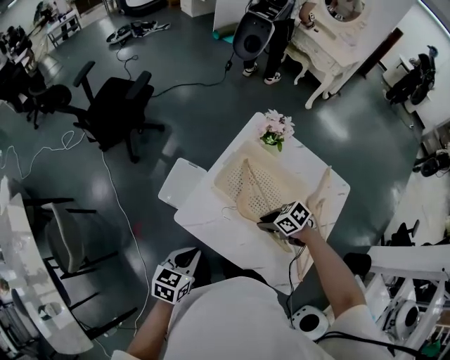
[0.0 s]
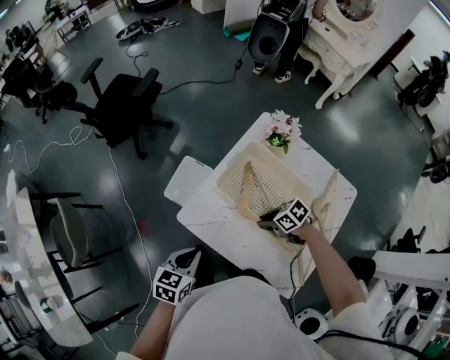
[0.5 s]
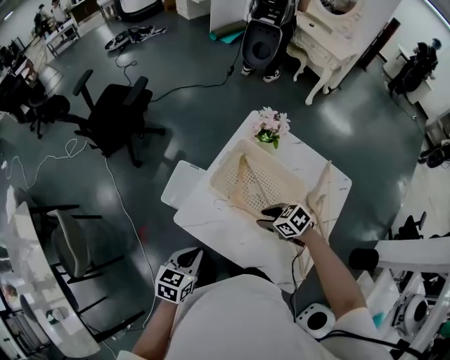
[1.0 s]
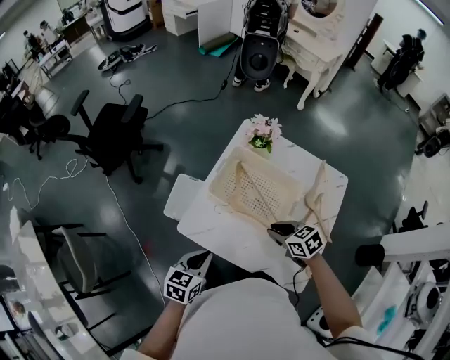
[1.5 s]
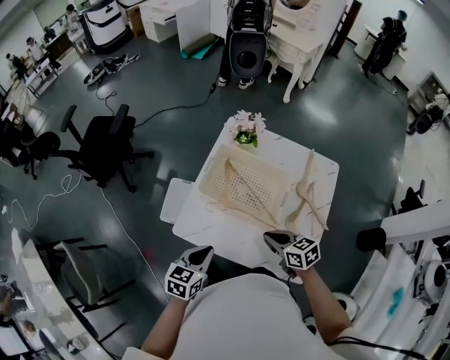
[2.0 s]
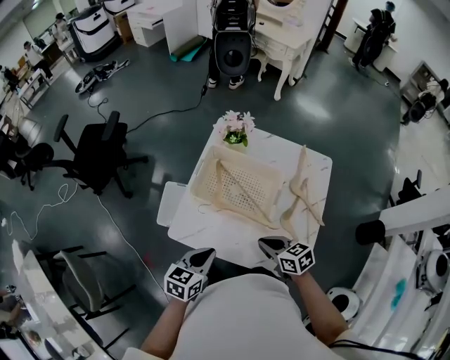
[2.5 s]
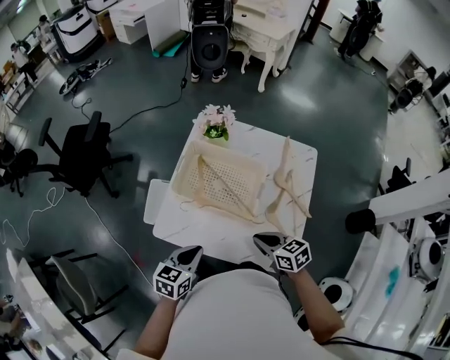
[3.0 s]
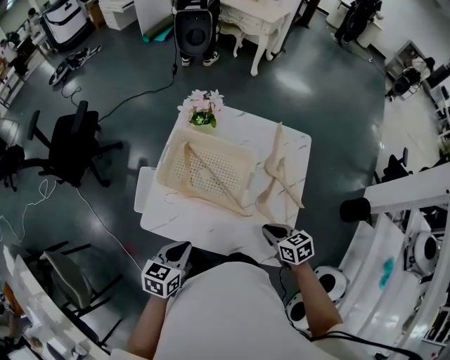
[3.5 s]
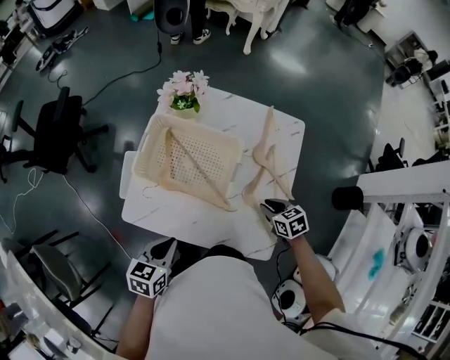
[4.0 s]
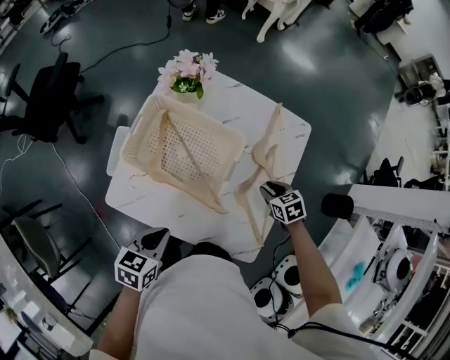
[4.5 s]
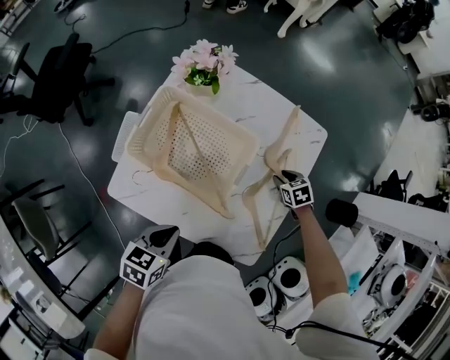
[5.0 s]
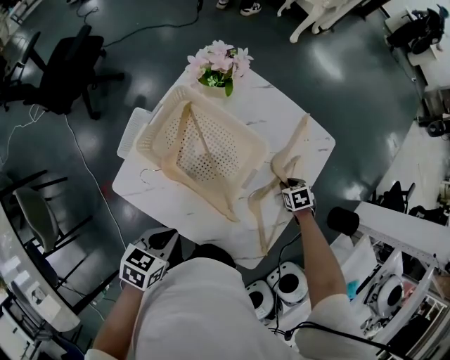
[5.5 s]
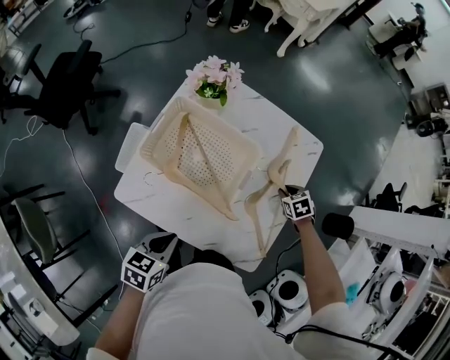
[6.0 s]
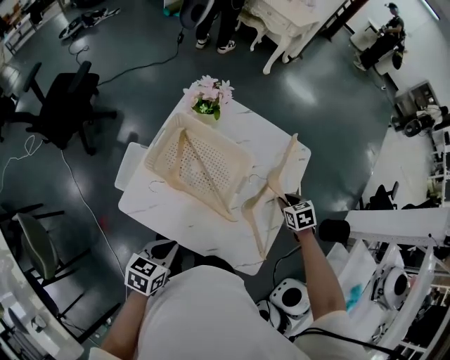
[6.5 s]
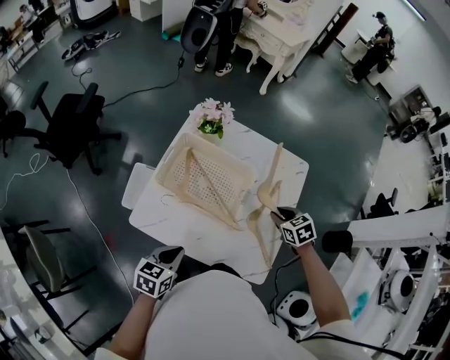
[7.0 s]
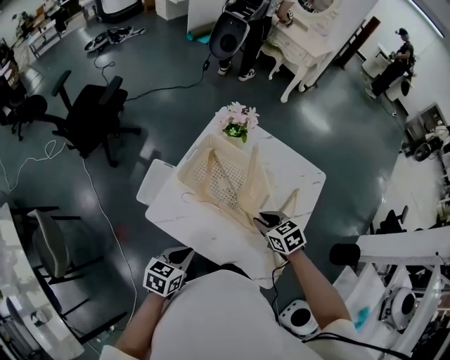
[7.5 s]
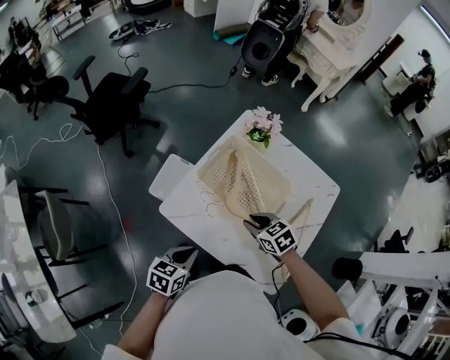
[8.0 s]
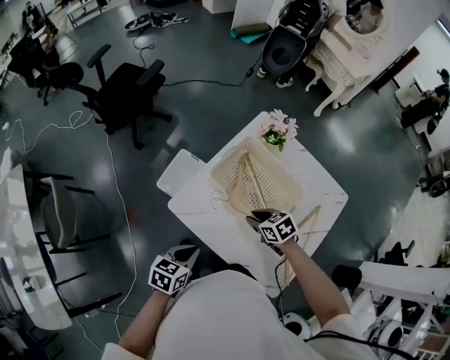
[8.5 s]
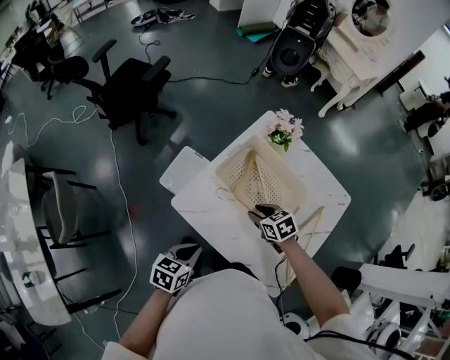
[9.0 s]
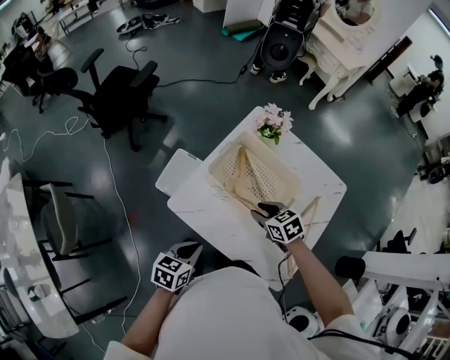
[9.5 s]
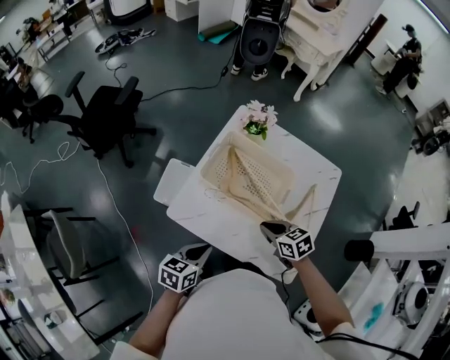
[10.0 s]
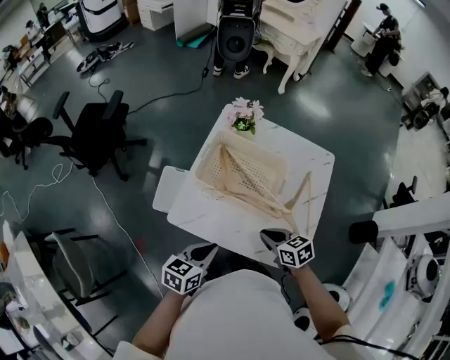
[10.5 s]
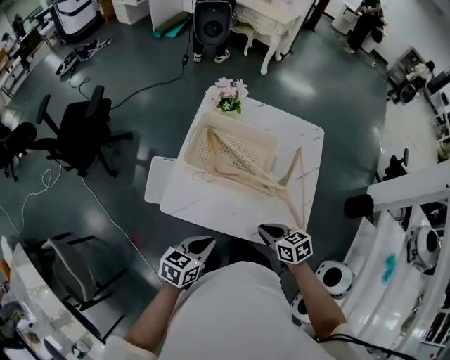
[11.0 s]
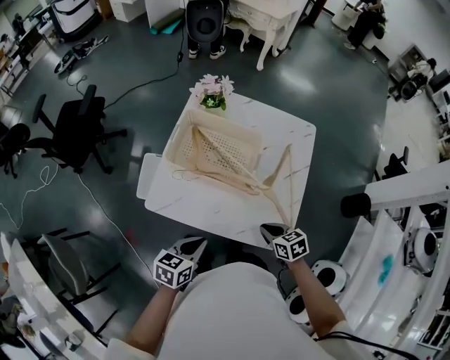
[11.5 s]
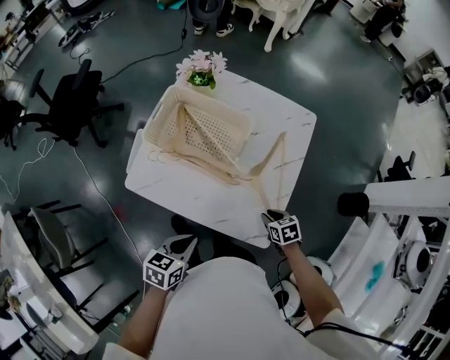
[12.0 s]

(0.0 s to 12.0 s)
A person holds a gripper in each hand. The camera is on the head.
0.0 s - 2.0 s: The right gripper changes place by roughly 10 cm, and swivels roughly 40 degrees; the left gripper moves some 5 cm.
2.0 s - 4.0 s: The right gripper moves to the right and downward, roughly 25 cm, and rotates some 20 degrees. The left gripper shifts about 5 cm to the right.
4.0 s - 6.0 s: The right gripper changes place by approximately 15 cm, and swivels about 20 degrees.
6.0 s - 8.0 s: The left gripper ends up approximately 10 cm from where it was. The right gripper ends up approximately 35 cm from where it was, and turns by roughly 30 degrees.
8.0 s - 10.0 s: The right gripper shifts about 5 cm backward.
10.0 s - 12.0 s: The left gripper heads to the right and backward, covering some 15 cm, while the right gripper heads to the right, downward and backward, covering approximately 30 cm, and rotates about 20 degrees.

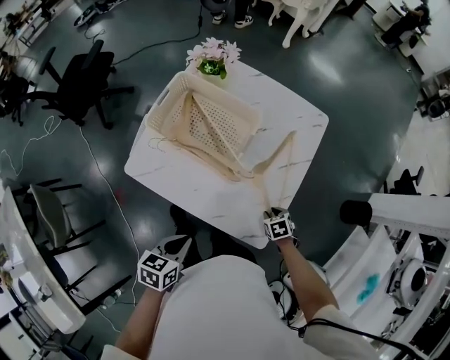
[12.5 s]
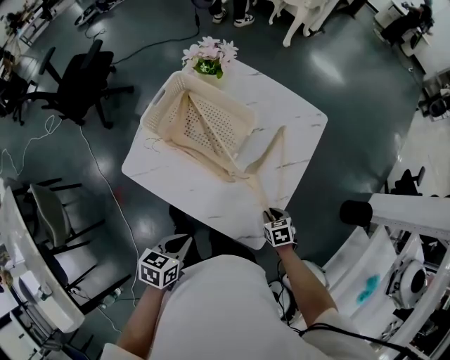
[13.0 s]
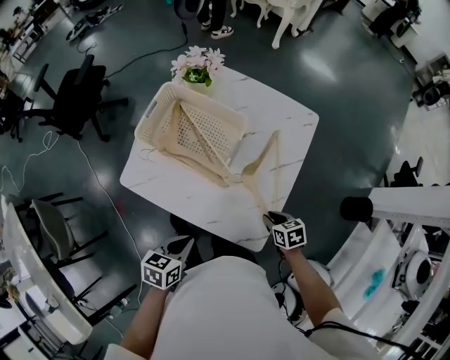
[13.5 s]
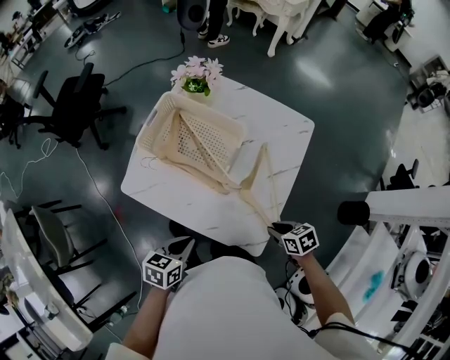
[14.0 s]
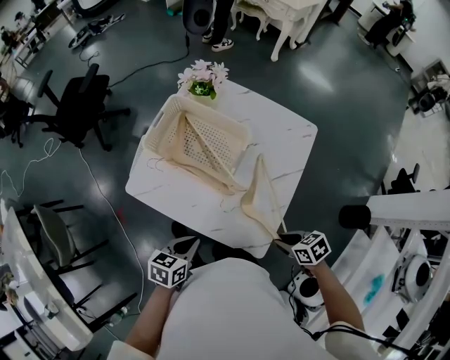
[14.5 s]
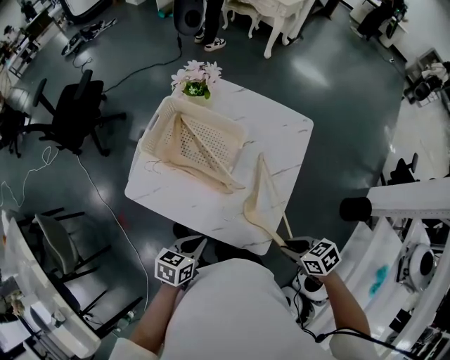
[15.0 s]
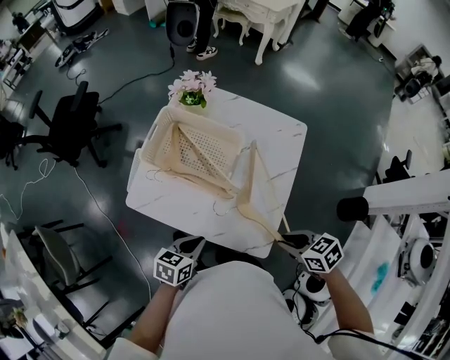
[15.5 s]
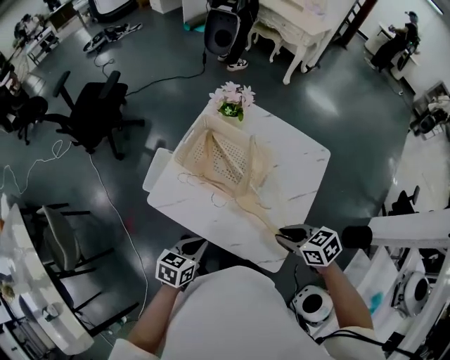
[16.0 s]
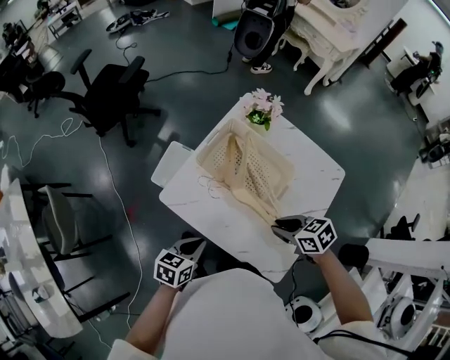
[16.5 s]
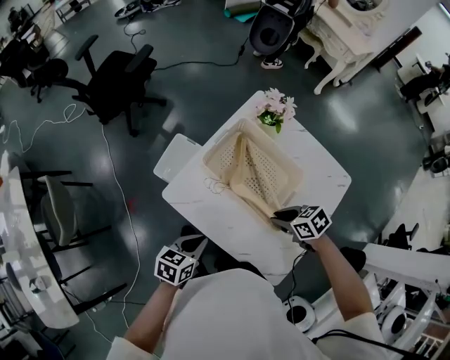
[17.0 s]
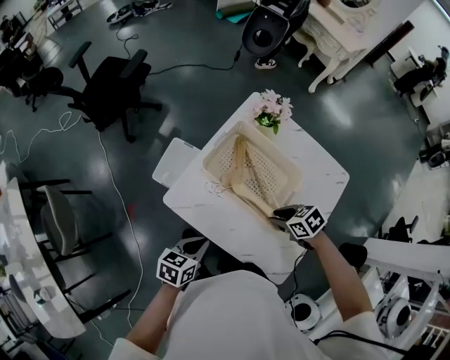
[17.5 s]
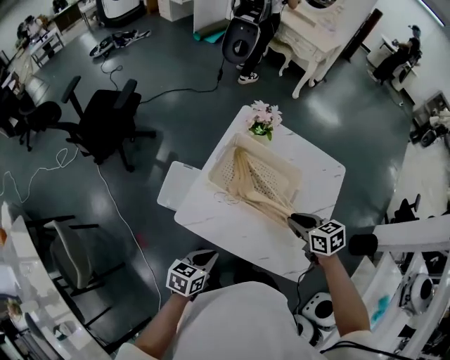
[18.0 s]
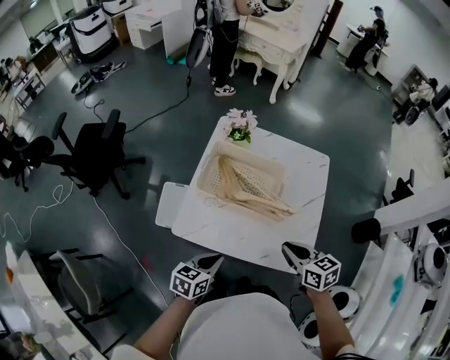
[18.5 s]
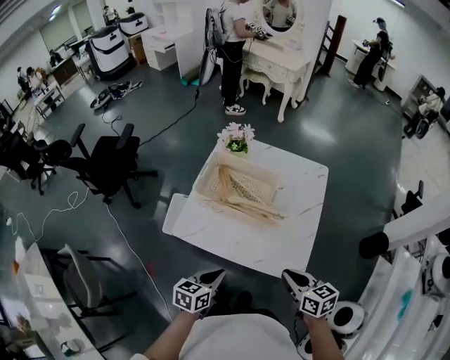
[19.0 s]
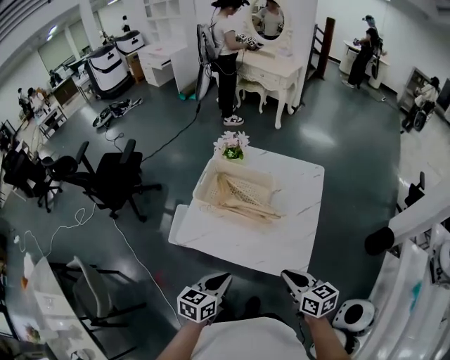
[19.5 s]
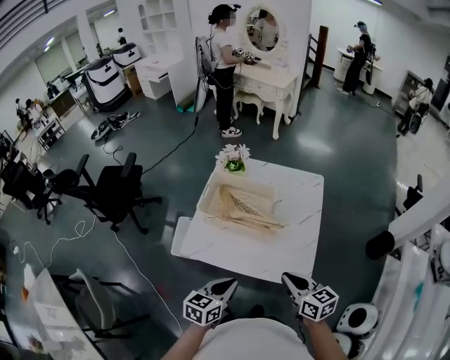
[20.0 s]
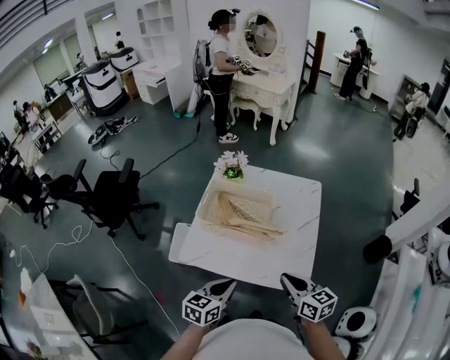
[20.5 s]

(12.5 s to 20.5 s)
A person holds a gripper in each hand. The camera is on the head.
12.5 s - 14.5 s: The right gripper shifts some 15 cm upward, and rotates some 30 degrees.
14.5 s - 16.5 s: The right gripper travels forward, to the left and upward by roughly 25 cm, while the left gripper shifts some 15 cm to the left and forward.
16.5 s - 18.5 s: The left gripper changes its angle by approximately 20 degrees, while the right gripper shifts by about 10 cm, and changes its angle by roughly 40 degrees.
18.5 s - 20.5 s: The left gripper goes about 15 cm upward, to the right and backward, while the right gripper is displaced backward and upward by roughly 10 cm.

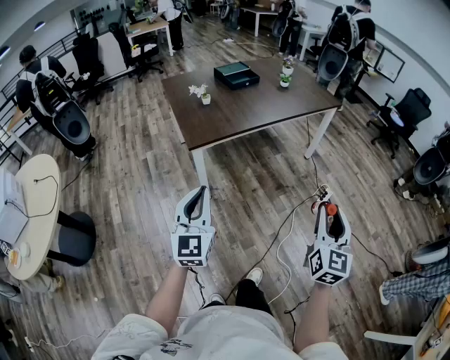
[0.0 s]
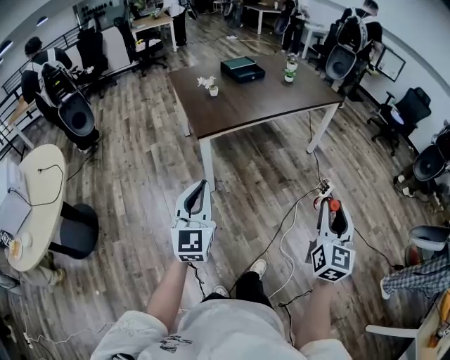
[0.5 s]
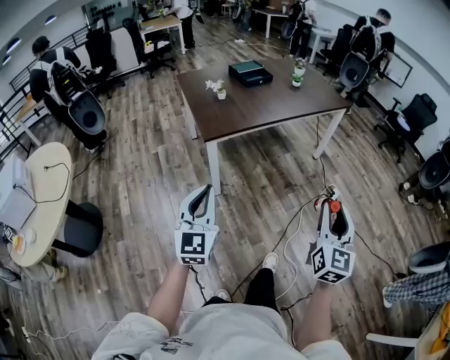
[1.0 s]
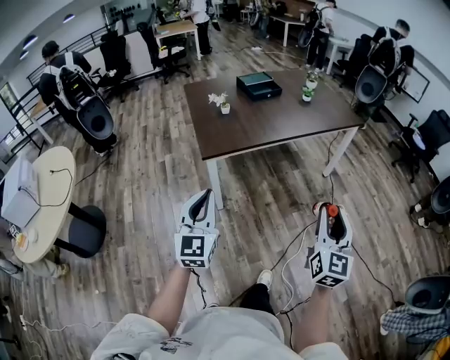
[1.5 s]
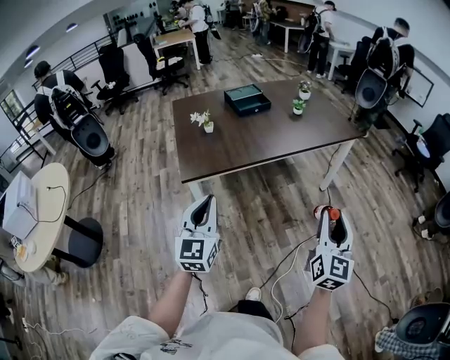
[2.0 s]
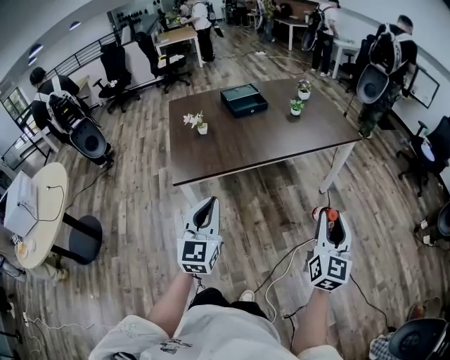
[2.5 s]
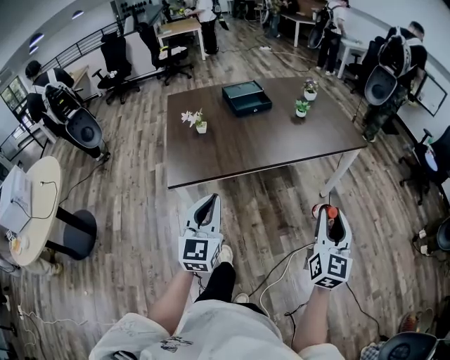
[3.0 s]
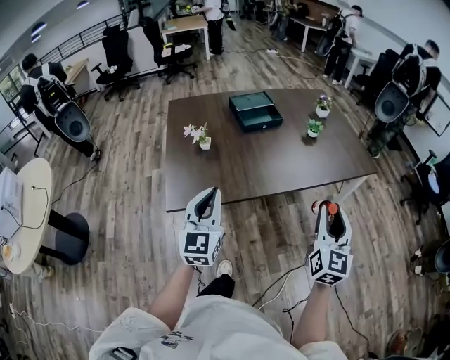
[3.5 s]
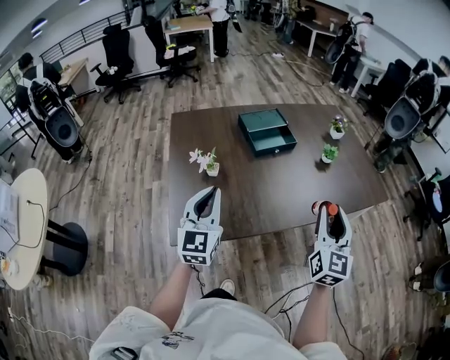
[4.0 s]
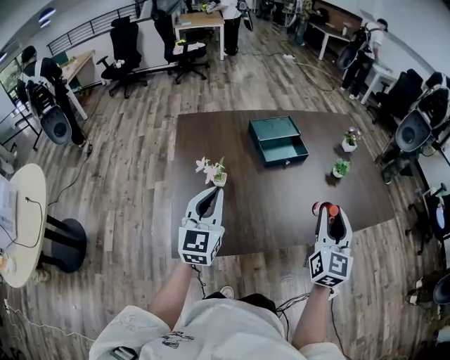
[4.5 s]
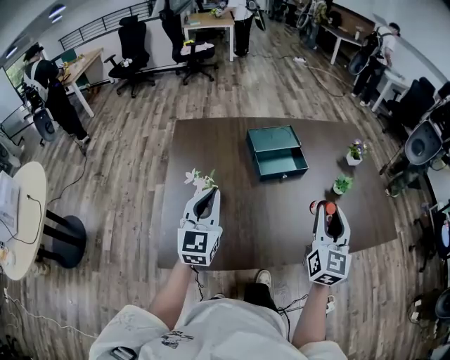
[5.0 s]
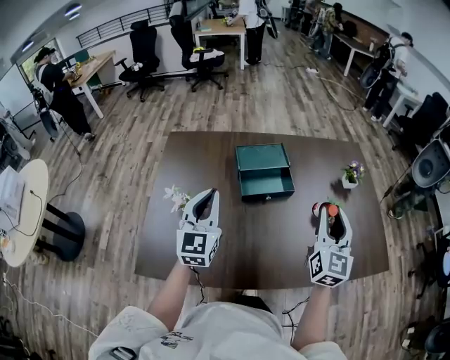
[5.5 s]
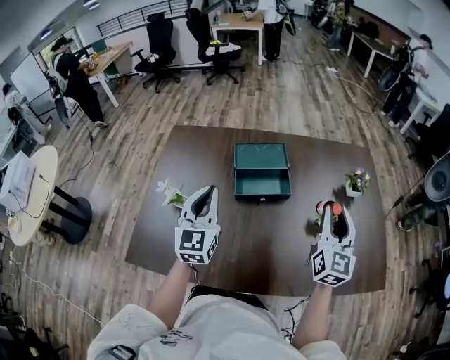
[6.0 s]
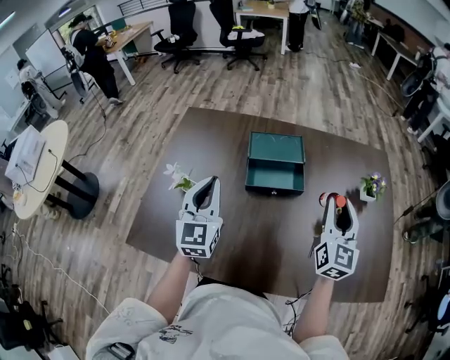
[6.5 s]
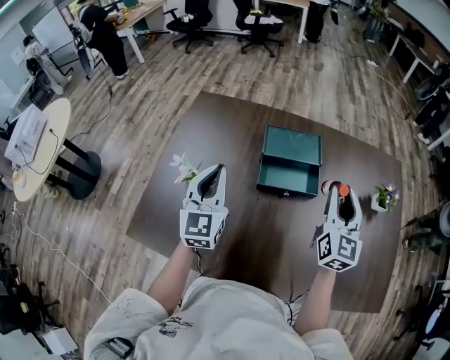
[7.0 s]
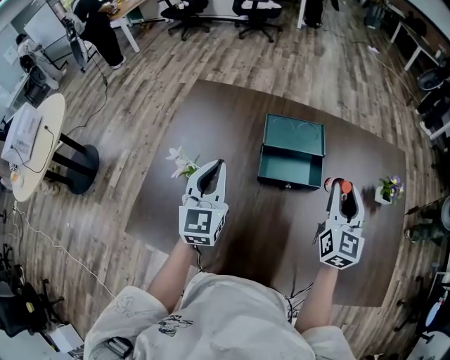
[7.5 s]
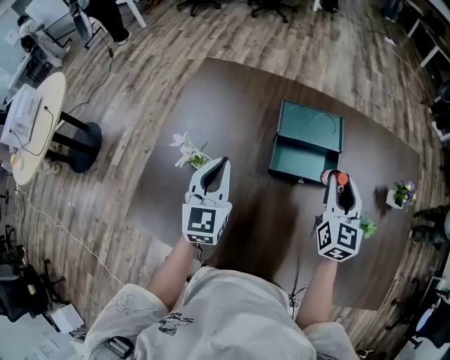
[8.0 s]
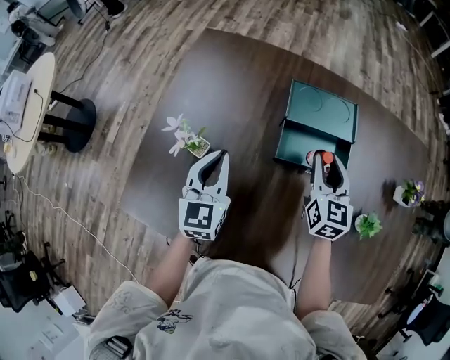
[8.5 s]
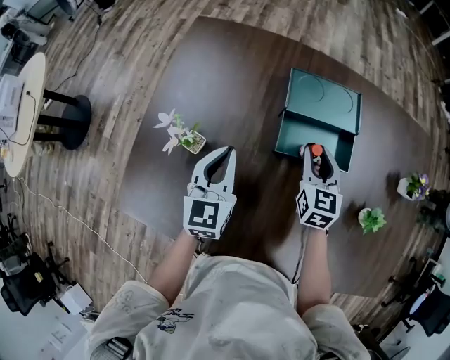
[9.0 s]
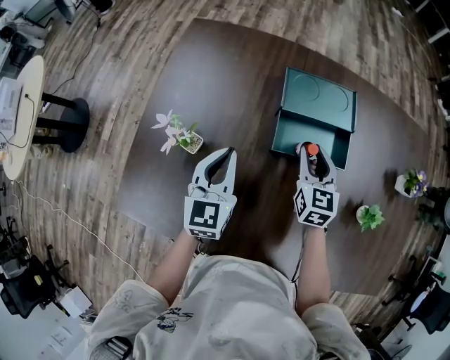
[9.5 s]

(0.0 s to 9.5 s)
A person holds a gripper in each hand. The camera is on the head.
0.0 s - 2.0 s: Both grippers move forward and to the right, approximately 20 cm.
2.0 s - 4.0 s: Both grippers are carried forward, about 40 cm.
4.0 s - 5.5 s: The grippers both shift forward by roughly 25 cm.
5.5 s - 7.5 s: The left gripper moves forward and downward, roughly 10 cm. Meanwhile the right gripper travels forward and downward by approximately 15 cm.
7.5 s - 9.5 s: The right gripper shifts approximately 25 cm downward, to the left and forward, and swivels about 20 degrees. The left gripper is displaced downward by roughly 10 cm.
